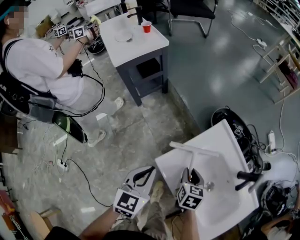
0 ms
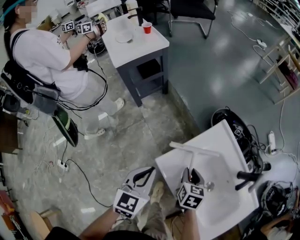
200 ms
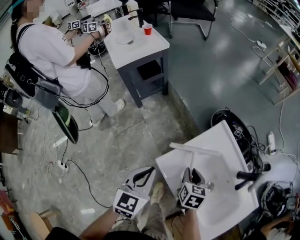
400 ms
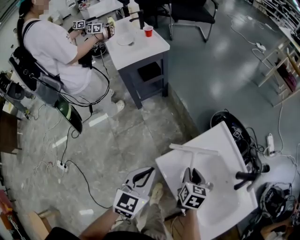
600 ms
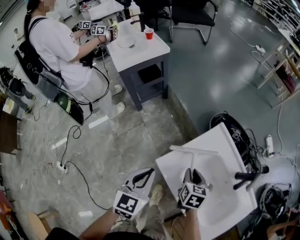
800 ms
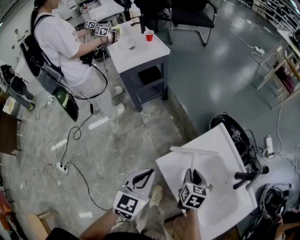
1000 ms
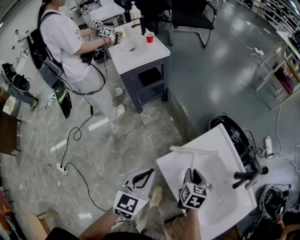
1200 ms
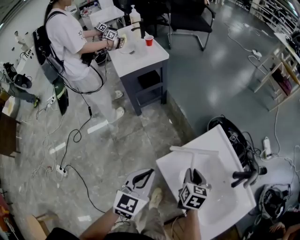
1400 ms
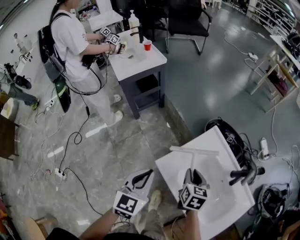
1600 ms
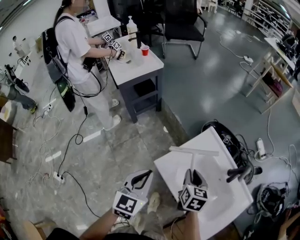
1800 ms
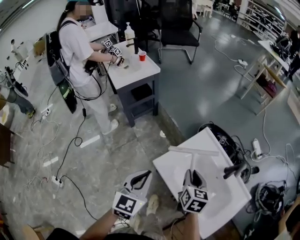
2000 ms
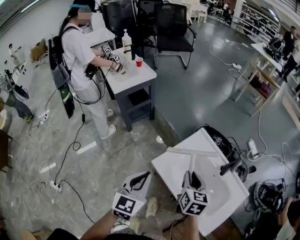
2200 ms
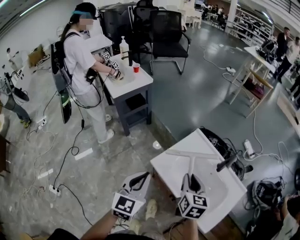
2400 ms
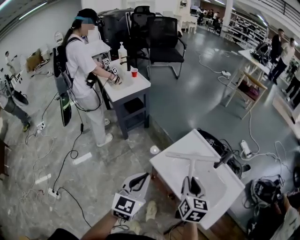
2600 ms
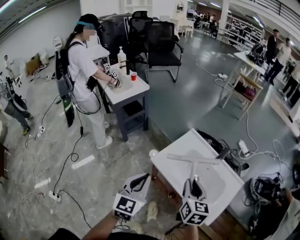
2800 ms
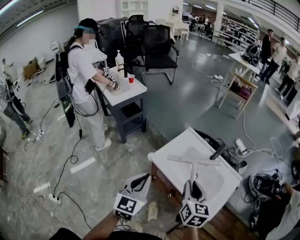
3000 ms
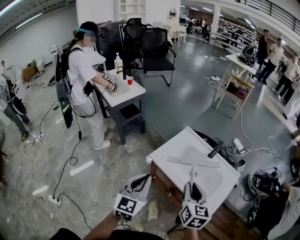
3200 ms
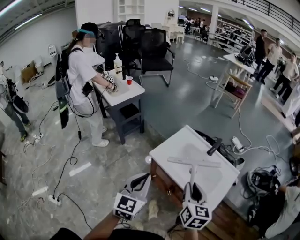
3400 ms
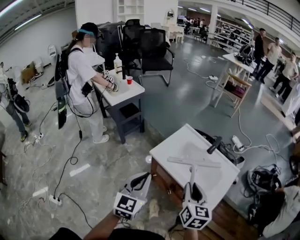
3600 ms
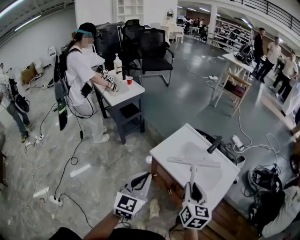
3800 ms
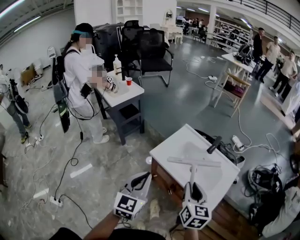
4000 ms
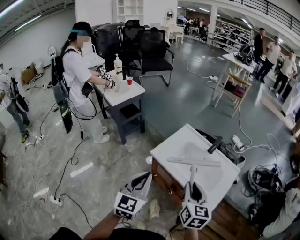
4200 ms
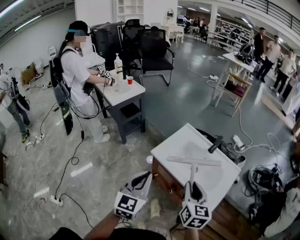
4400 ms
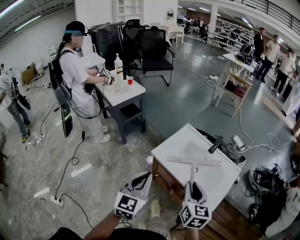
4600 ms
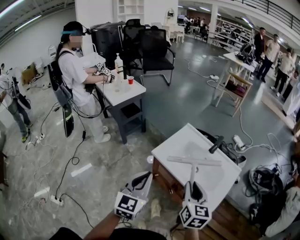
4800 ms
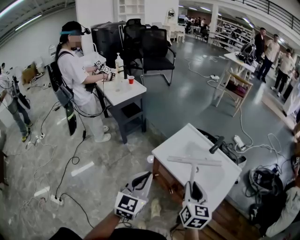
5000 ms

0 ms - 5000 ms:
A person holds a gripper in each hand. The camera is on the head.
0 ms - 1600 ms: The two grippers go approximately 5 cm upward.
1600 ms - 3400 ms: The grippers both shift backward and upward by about 30 cm. The right gripper turns by roughly 20 degrees.
3400 ms - 5000 ms: The grippers move only a little.

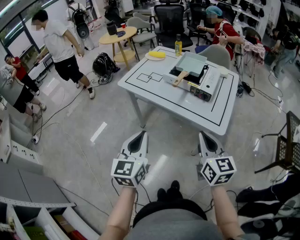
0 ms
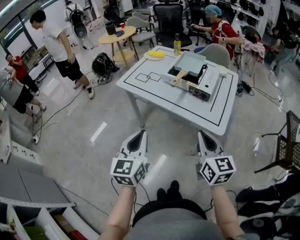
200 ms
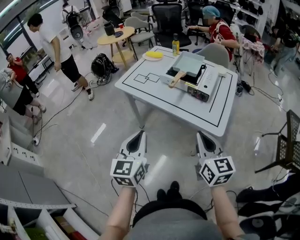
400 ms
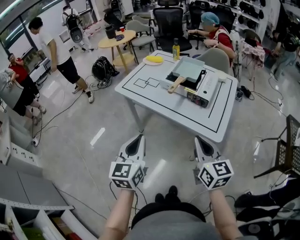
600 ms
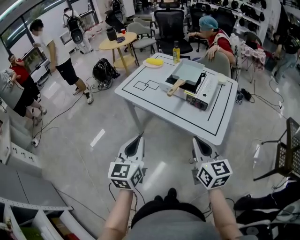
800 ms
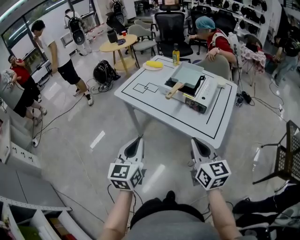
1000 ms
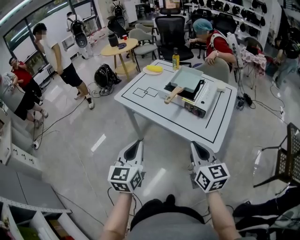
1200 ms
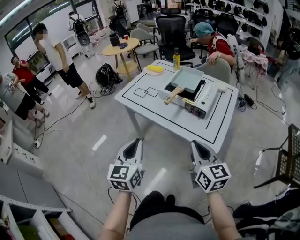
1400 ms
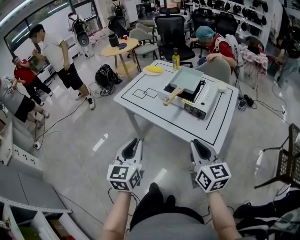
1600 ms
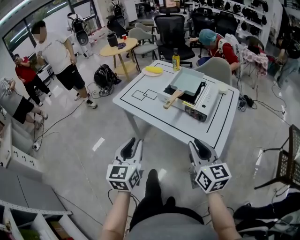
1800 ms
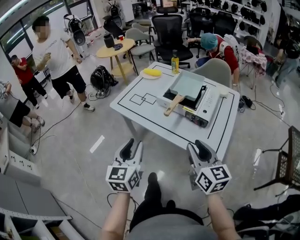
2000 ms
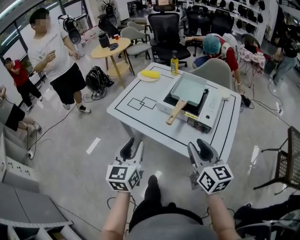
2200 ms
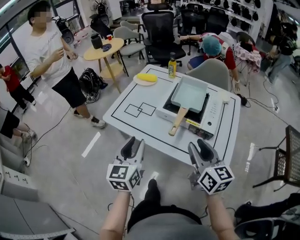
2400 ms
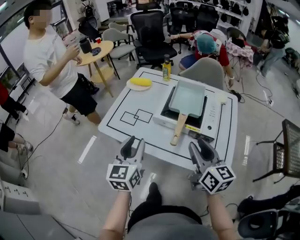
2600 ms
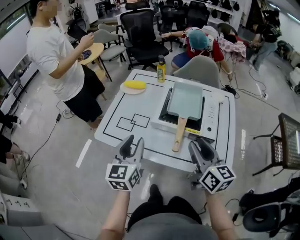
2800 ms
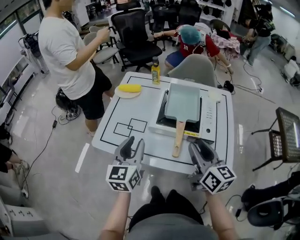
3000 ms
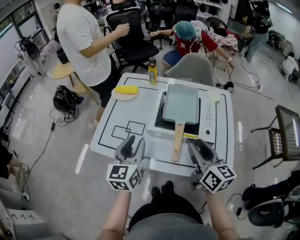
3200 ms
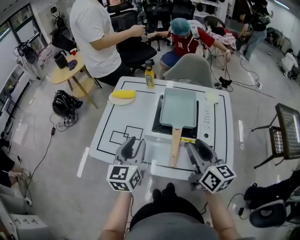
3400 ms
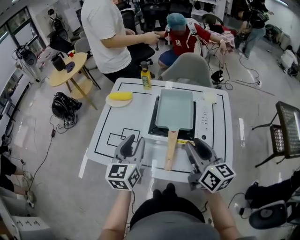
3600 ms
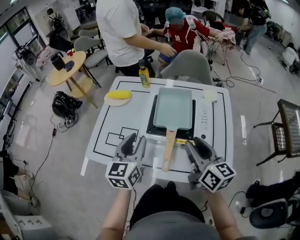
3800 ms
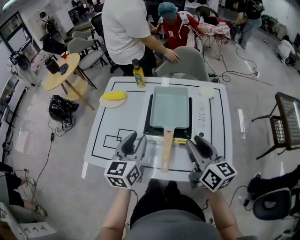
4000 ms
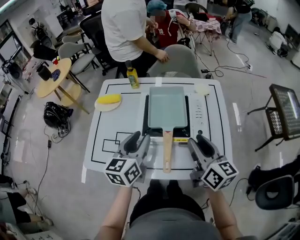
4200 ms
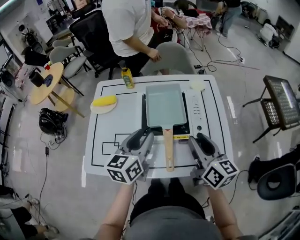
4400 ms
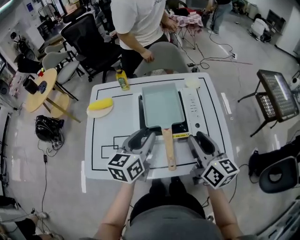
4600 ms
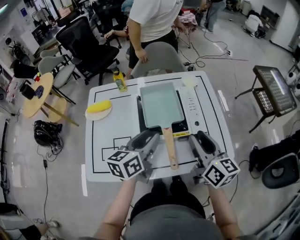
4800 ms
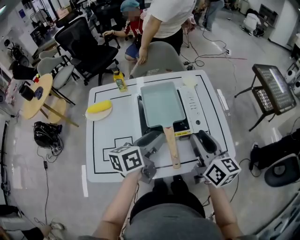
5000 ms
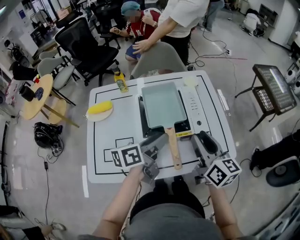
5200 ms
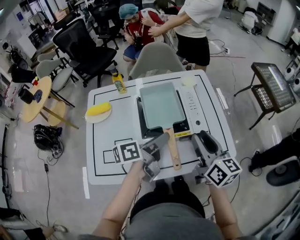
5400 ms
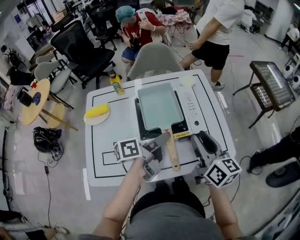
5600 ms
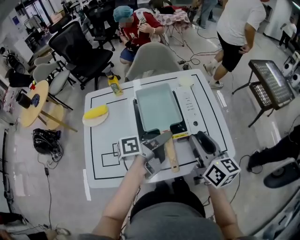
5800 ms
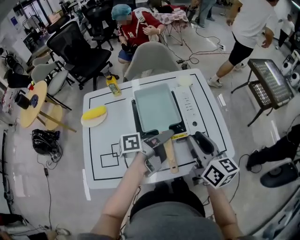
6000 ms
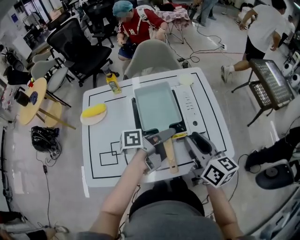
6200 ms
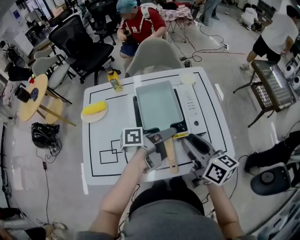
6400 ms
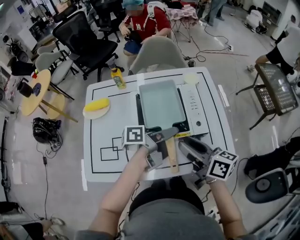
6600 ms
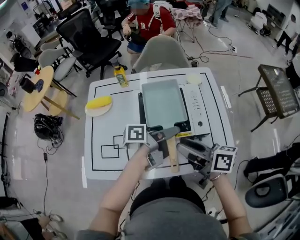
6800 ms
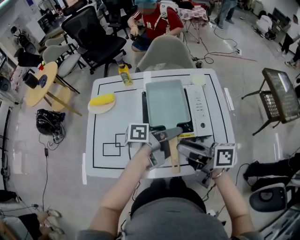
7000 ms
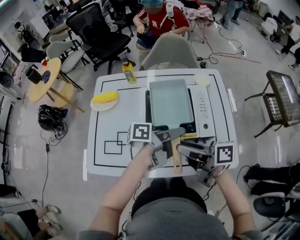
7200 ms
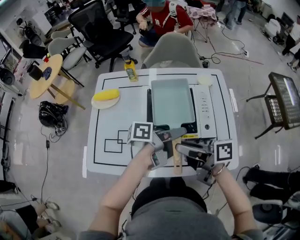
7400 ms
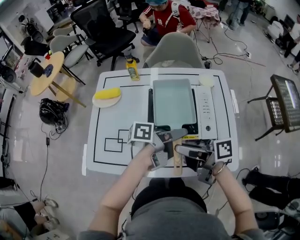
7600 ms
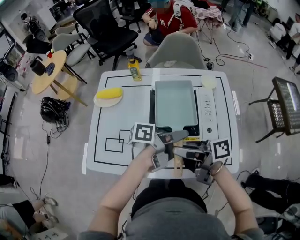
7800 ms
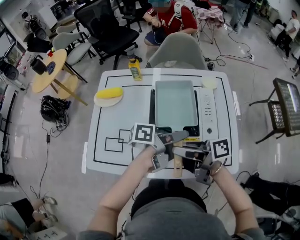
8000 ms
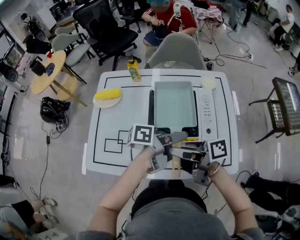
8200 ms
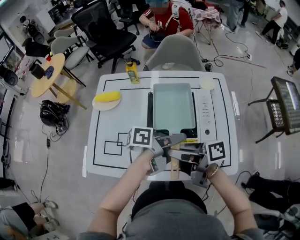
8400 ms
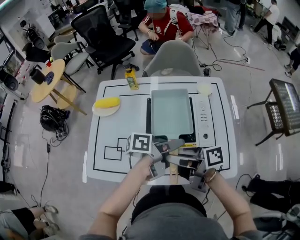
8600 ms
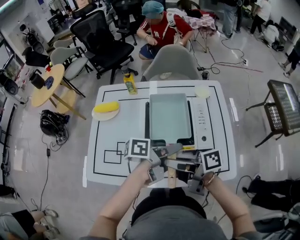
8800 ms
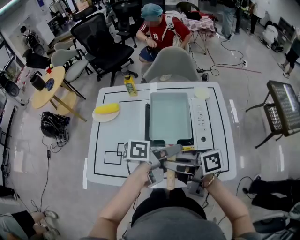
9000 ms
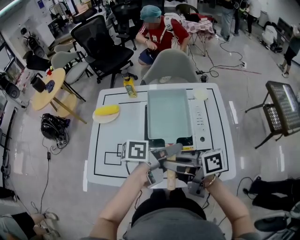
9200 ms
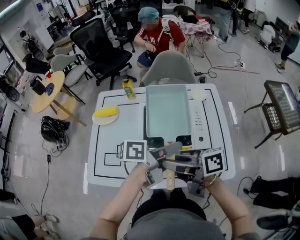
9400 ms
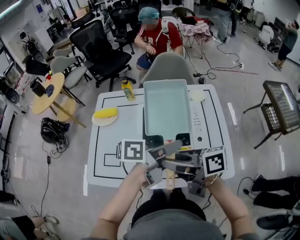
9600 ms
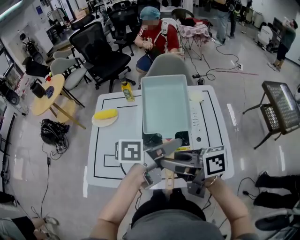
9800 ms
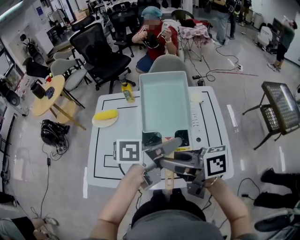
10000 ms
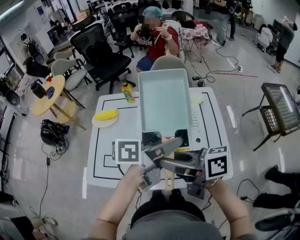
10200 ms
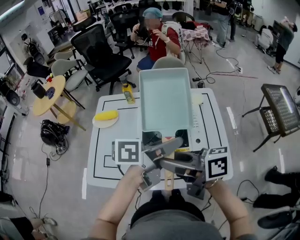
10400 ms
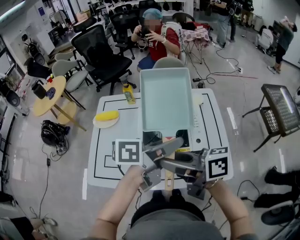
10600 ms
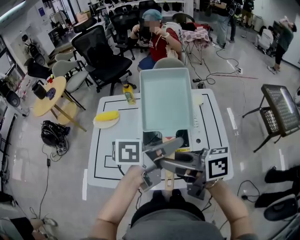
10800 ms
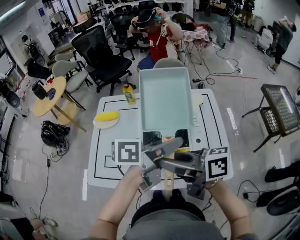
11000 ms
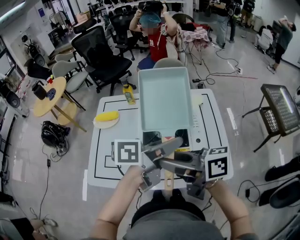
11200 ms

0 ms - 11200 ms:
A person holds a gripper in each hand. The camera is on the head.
0 ms - 1600 ms: The grippers both shift forward by some 5 cm.
1600 ms - 3200 ms: Both grippers travel together forward, approximately 30 cm. The right gripper changes its angle by some 20 degrees, and opens its fingers; the left gripper changes its angle by roughly 20 degrees, and opens its fingers.
3200 ms - 4800 ms: The left gripper moves roughly 15 cm, and changes its angle by roughly 40 degrees.
4800 ms - 6400 ms: The left gripper heads to the right, covering some 10 cm, and rolls counterclockwise, seen from behind, by some 50 degrees.
6400 ms - 8000 ms: The right gripper ends up about 10 cm from where it was, and rotates about 60 degrees.
8000 ms - 9600 ms: Both grippers move upward, approximately 5 cm.
9600 ms - 11200 ms: Both grippers travel together upward, approximately 5 cm.

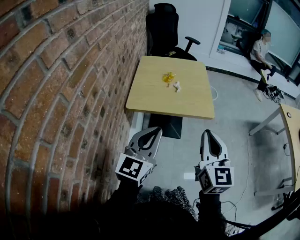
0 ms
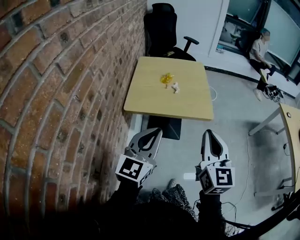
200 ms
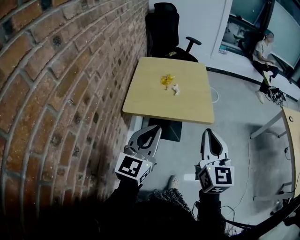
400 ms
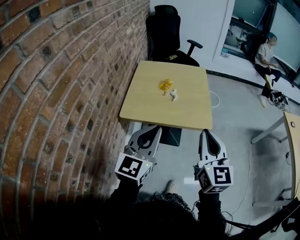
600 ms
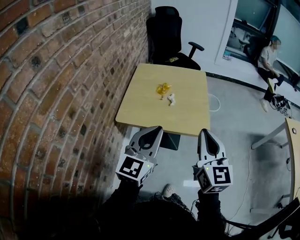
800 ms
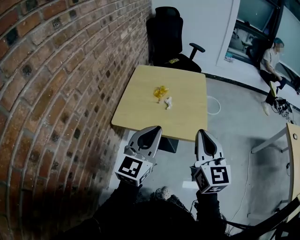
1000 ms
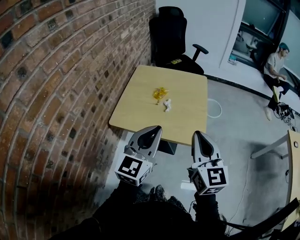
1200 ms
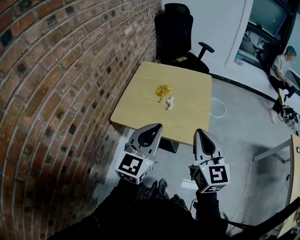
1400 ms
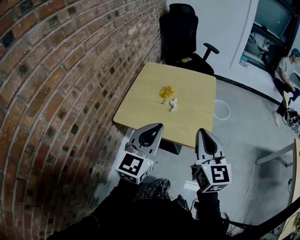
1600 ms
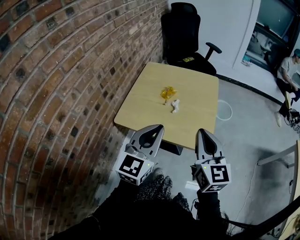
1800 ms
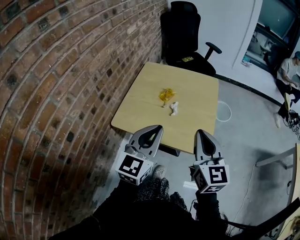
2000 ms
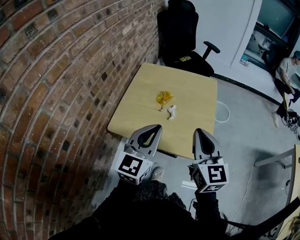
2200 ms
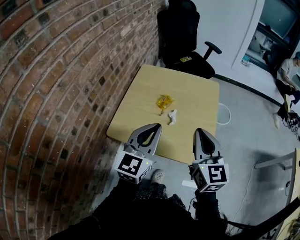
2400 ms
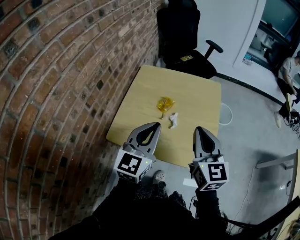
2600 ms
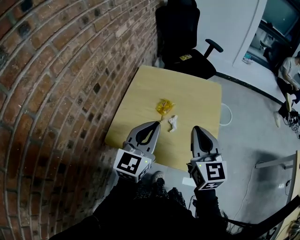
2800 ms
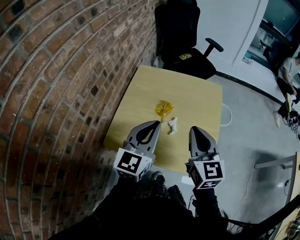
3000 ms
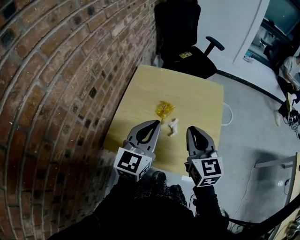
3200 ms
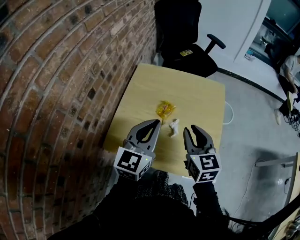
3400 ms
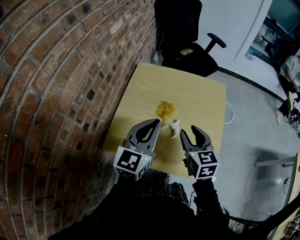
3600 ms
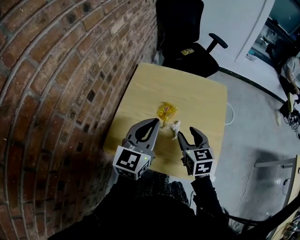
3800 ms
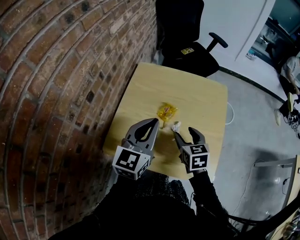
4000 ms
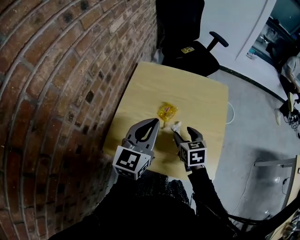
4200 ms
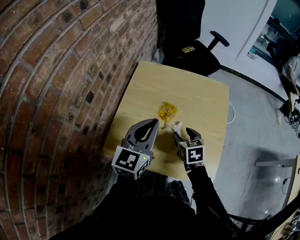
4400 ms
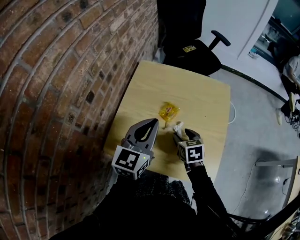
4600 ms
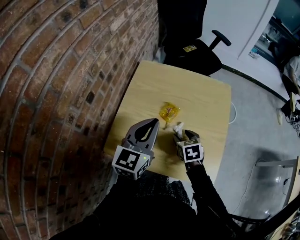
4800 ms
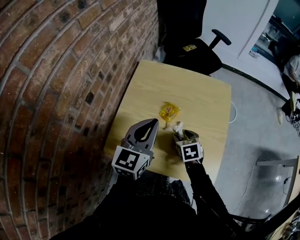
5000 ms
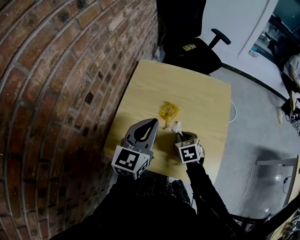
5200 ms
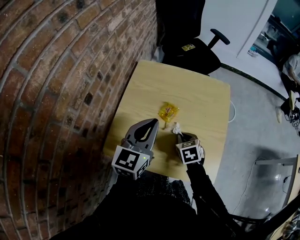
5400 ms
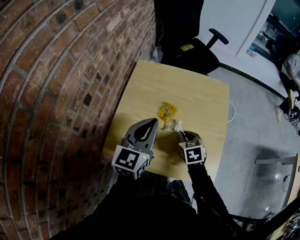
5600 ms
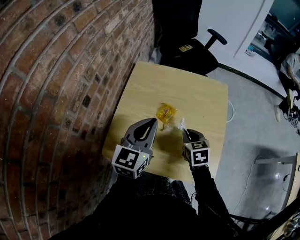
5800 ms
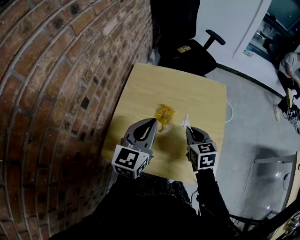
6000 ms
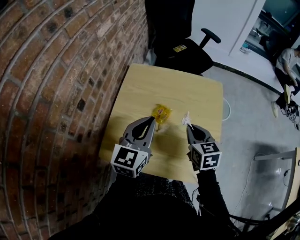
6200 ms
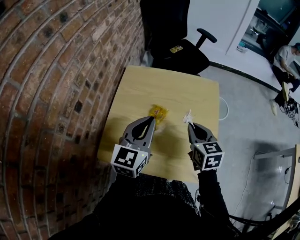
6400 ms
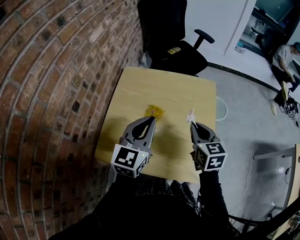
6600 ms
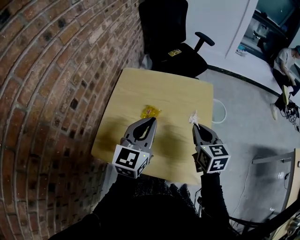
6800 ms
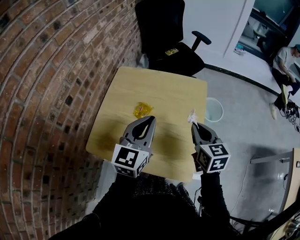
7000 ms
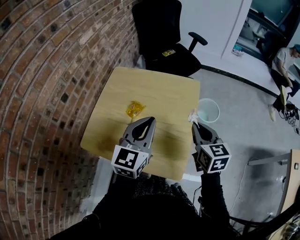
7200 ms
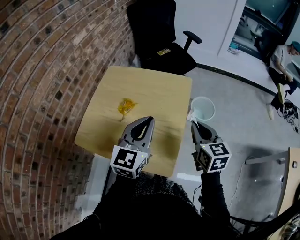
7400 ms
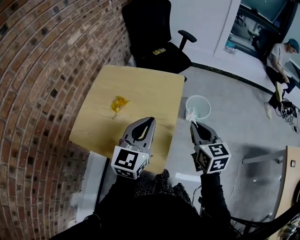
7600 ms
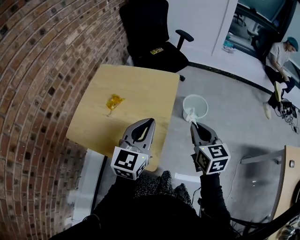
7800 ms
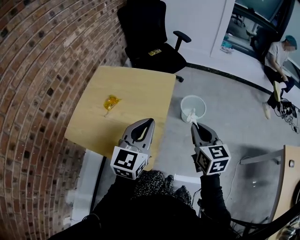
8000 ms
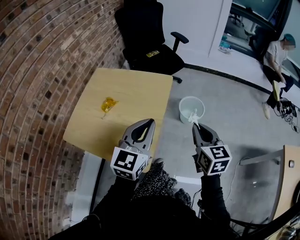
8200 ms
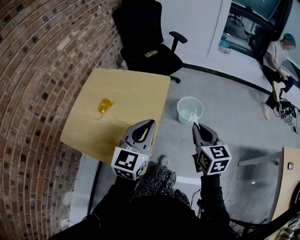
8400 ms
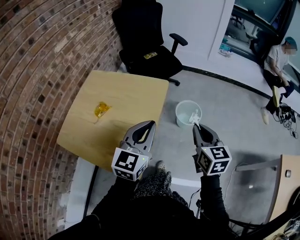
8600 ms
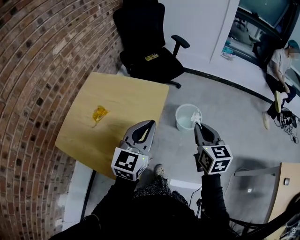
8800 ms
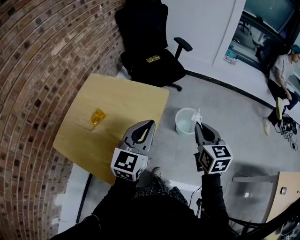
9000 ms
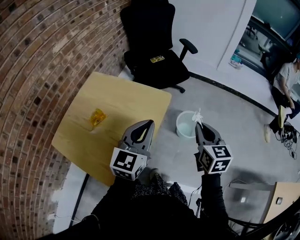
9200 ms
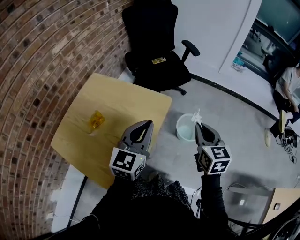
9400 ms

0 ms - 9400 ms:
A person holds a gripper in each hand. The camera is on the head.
0 ms - 1600 ms: The right gripper shifts approximately 20 cm forward, while the left gripper goes approximately 20 cm forward and to the right.
1600 ms - 3200 ms: The grippers both shift forward by about 20 cm.
3200 ms - 4800 ms: The right gripper is displaced downward by approximately 20 cm, angles its fingers downward, by about 40 degrees, and opens its fingers. Meanwhile the left gripper travels forward by approximately 5 cm.
4800 ms - 6200 ms: The right gripper goes about 15 cm upward and to the right, and closes its fingers.
6200 ms - 7800 ms: The two grippers go roughly 30 cm to the right.
7800 ms - 9400 ms: The right gripper heads forward and to the right, covering about 20 cm. The left gripper goes about 15 cm forward.
